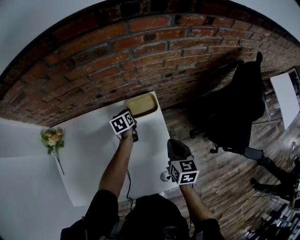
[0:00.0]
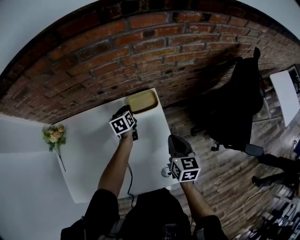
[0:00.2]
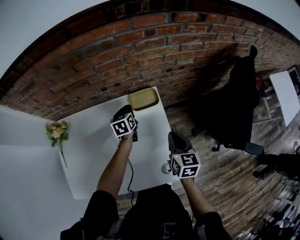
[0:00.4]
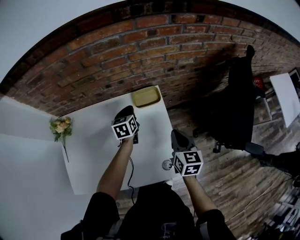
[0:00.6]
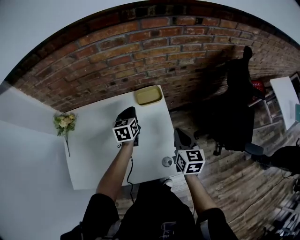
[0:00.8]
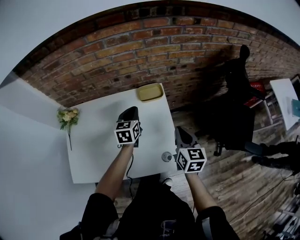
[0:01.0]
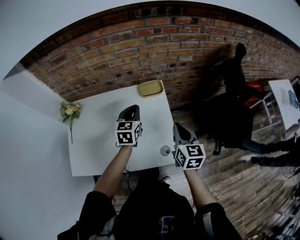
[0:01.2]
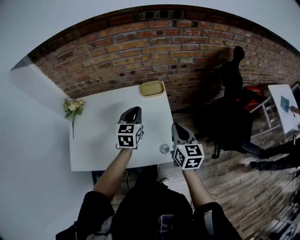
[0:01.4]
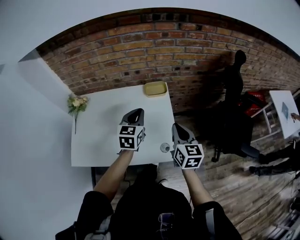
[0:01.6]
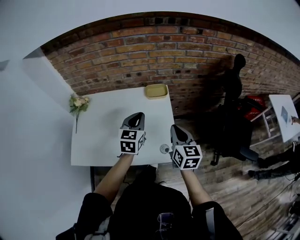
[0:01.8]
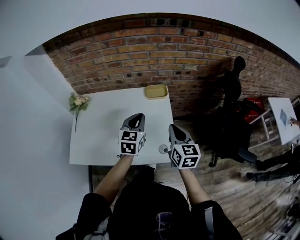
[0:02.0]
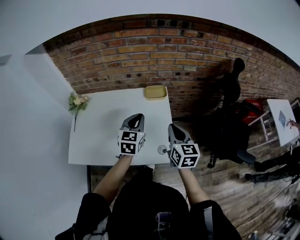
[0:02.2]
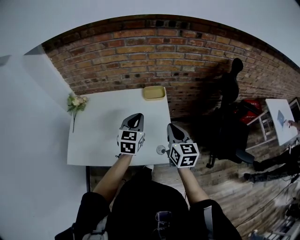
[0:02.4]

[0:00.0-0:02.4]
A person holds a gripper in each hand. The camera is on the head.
0:00.0 to 0:01.2: The left gripper moves upward and backward, some 30 cm, and swivels approximately 40 degrees; the right gripper travels backward and upward by roughly 15 cm.
0:01.2 to 0:02.4: The left gripper heads backward, covering approximately 10 cm. Meanwhile the right gripper ends up about 5 cm from where it was.

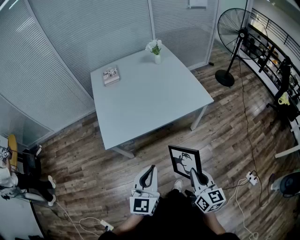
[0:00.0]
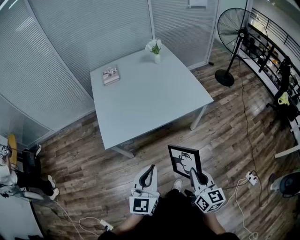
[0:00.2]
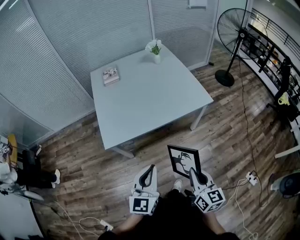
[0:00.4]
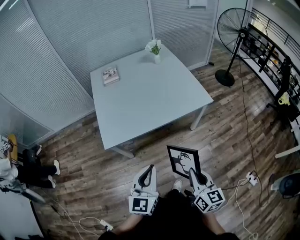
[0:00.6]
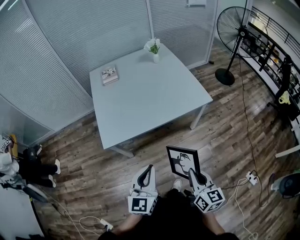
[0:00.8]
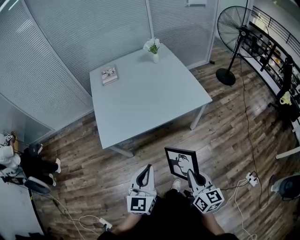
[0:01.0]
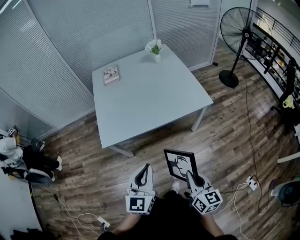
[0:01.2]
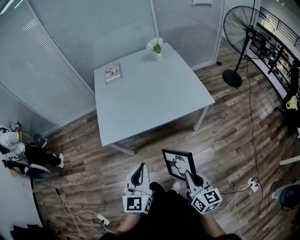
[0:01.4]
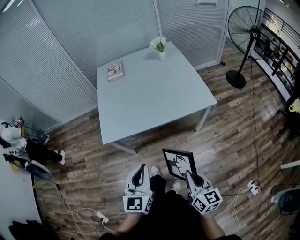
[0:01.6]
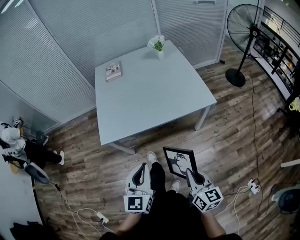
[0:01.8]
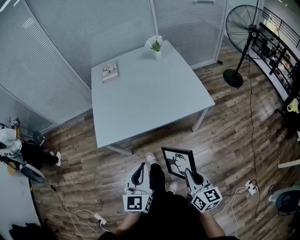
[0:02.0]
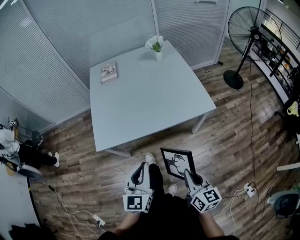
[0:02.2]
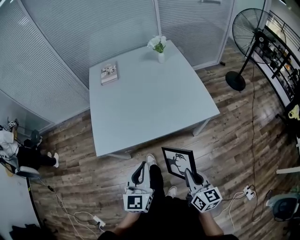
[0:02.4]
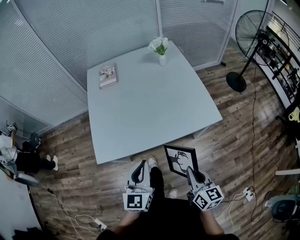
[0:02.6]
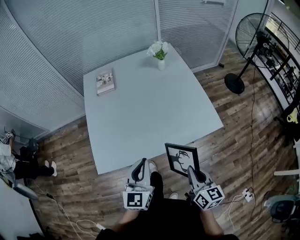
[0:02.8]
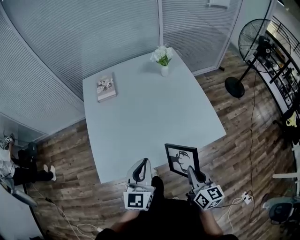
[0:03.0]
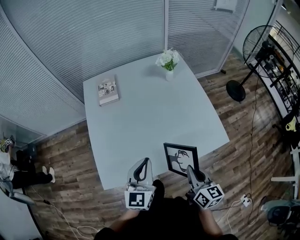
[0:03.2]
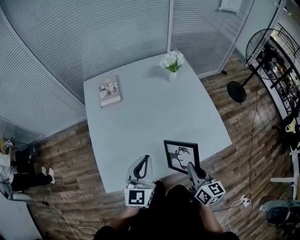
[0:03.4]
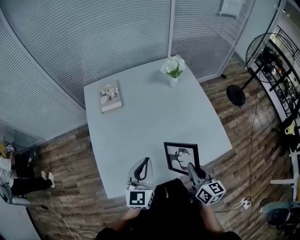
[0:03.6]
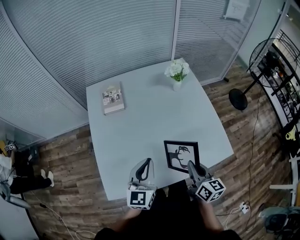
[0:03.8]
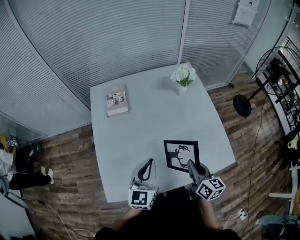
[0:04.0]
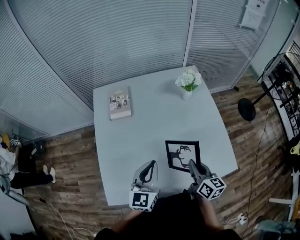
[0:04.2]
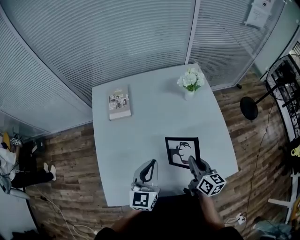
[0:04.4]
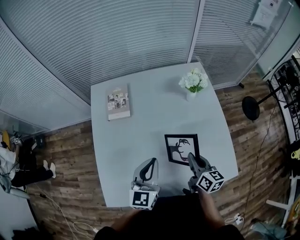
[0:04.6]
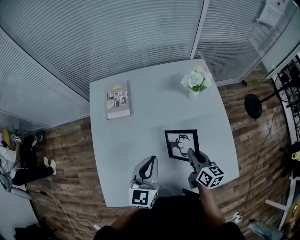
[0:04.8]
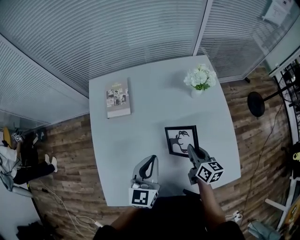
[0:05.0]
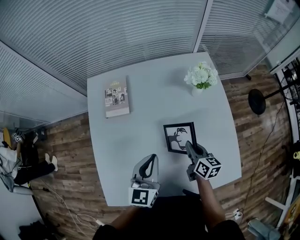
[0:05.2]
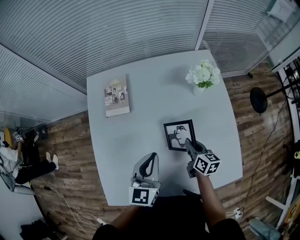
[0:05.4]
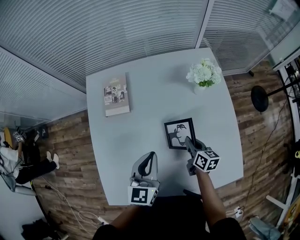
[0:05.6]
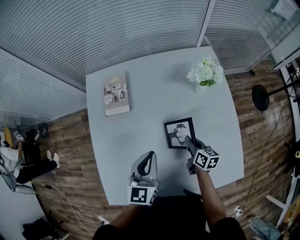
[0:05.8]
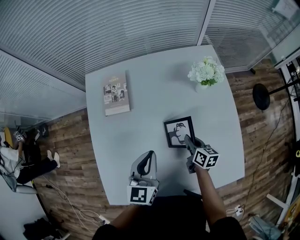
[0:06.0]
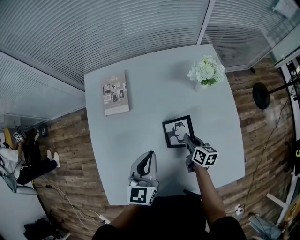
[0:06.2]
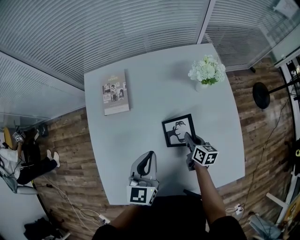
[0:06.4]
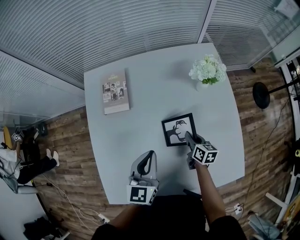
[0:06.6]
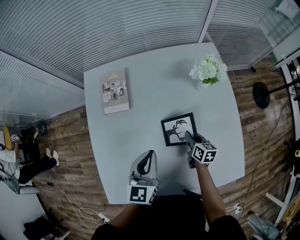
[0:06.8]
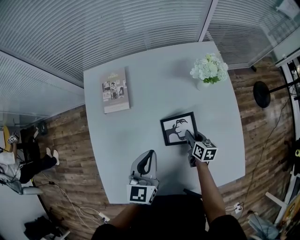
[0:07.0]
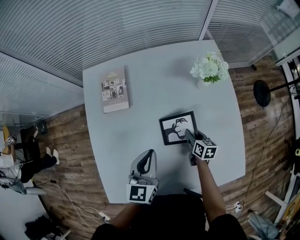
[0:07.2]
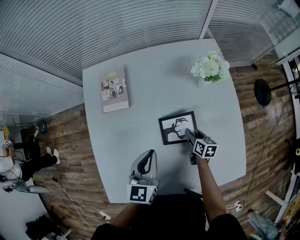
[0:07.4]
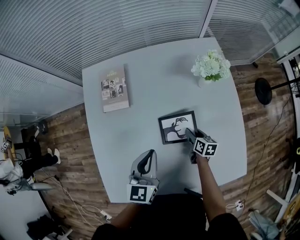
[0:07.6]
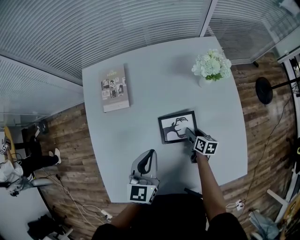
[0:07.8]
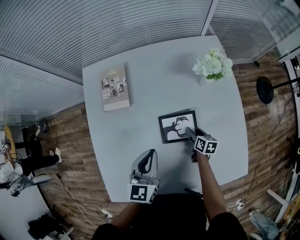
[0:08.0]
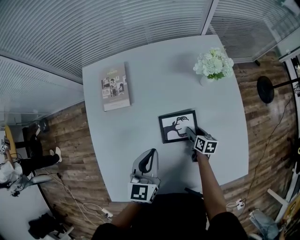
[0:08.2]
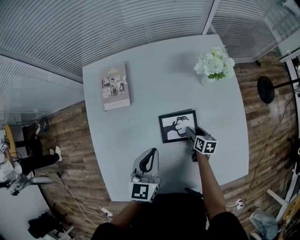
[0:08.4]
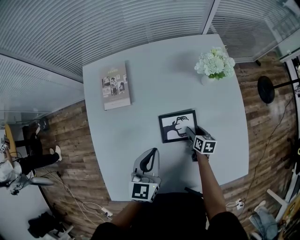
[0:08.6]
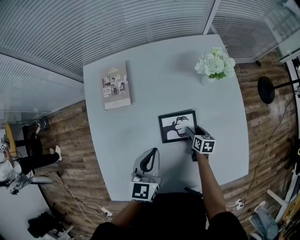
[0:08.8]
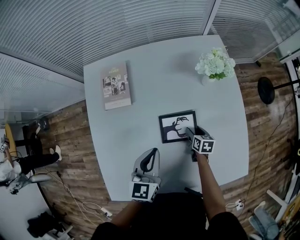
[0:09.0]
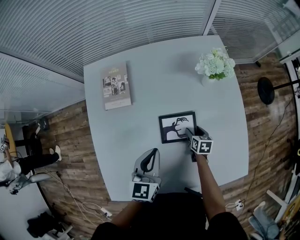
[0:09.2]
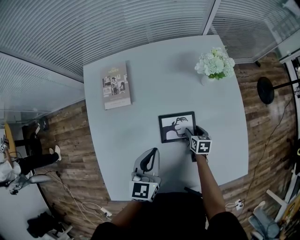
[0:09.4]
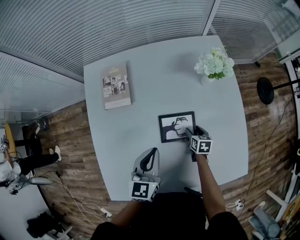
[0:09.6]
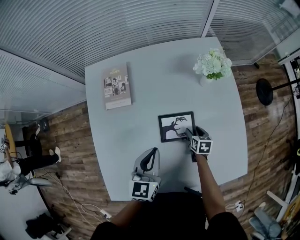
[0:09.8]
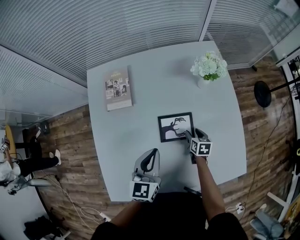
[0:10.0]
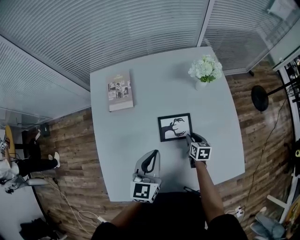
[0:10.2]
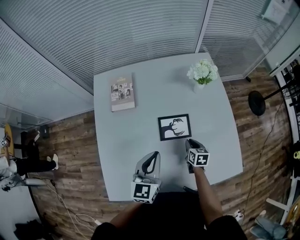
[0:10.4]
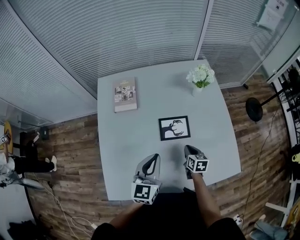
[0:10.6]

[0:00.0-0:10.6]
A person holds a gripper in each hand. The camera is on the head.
0:00.0 to 0:01.6: The right gripper heads to the right, covering some 5 cm.
0:01.6 to 0:03.0: The two grippers go about 35 cm forward.
0:03.0 to 0:04.6: Both grippers travel together forward, approximately 30 cm.
0:04.6 to 0:06.0: The left gripper moves forward, roughly 10 cm. The right gripper goes roughly 20 cm downward and forward.
0:06.0 to 0:07.6: The right gripper travels downward by approximately 10 cm, and opens.
0:07.6 to 0:09.0: The grippers move only a little.
0:09.0 to 0:10.6: The two grippers go some 15 cm backward and upward. The right gripper closes its fingers.

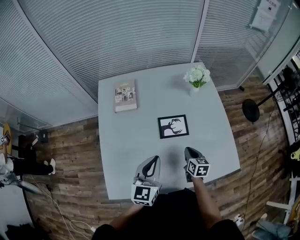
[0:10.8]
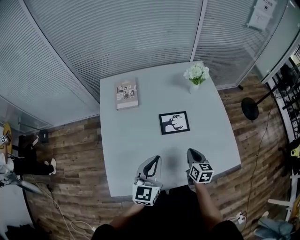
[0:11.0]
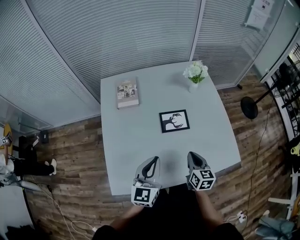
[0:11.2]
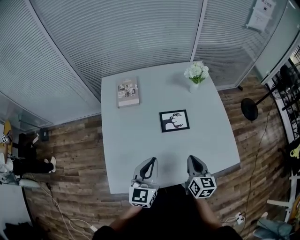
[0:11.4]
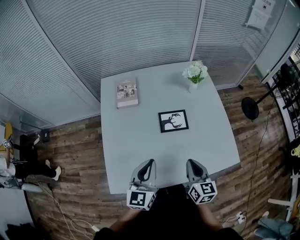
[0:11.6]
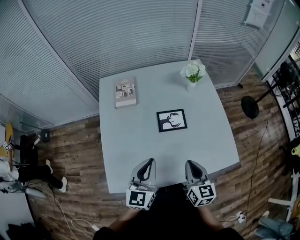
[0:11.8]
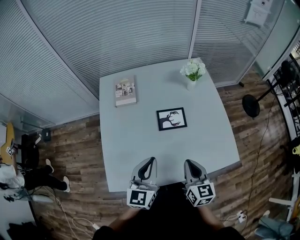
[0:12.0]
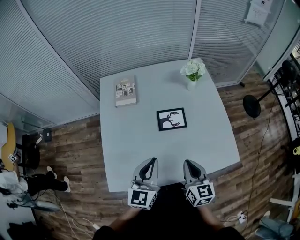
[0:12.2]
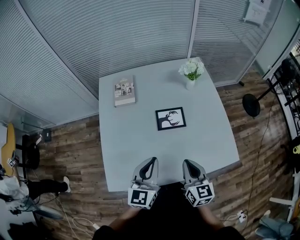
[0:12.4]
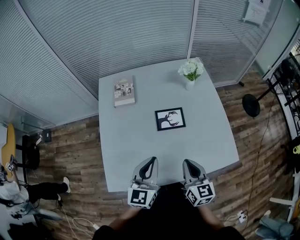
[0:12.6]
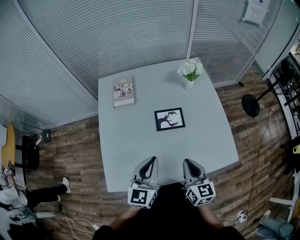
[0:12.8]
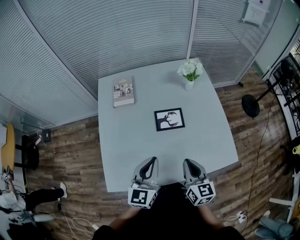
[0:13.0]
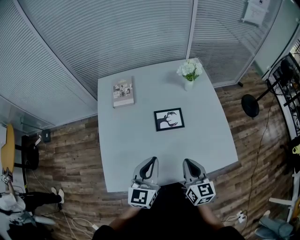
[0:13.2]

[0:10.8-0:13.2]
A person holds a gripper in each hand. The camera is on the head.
0:10.8 to 0:12.0: The left gripper is displaced backward by about 5 cm; the right gripper travels upward and backward by approximately 20 cm.
0:12.0 to 0:13.2: There are only small adjustments of the grippers.

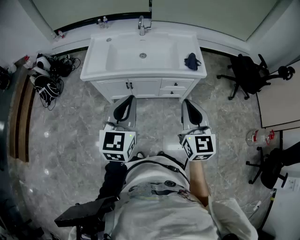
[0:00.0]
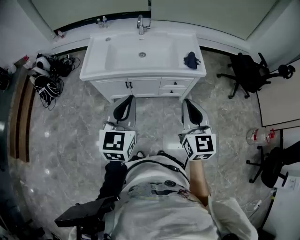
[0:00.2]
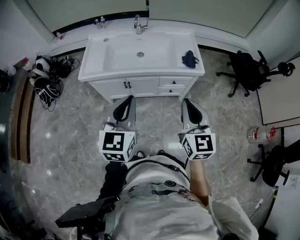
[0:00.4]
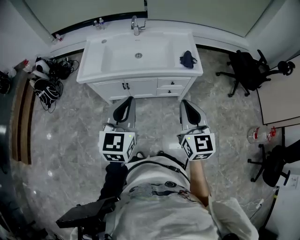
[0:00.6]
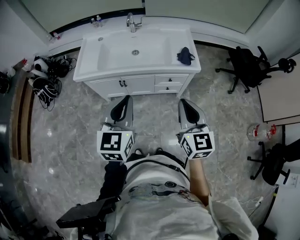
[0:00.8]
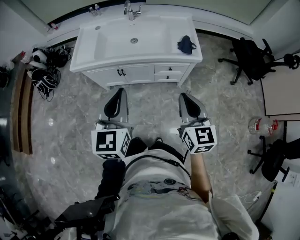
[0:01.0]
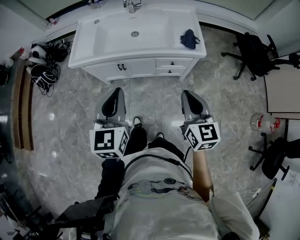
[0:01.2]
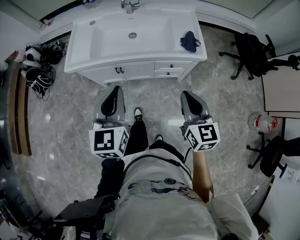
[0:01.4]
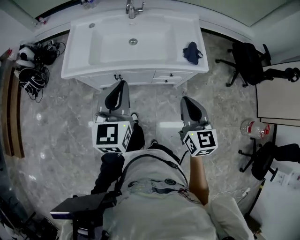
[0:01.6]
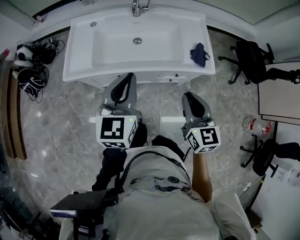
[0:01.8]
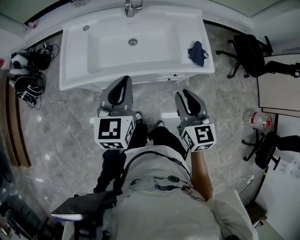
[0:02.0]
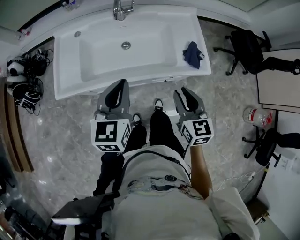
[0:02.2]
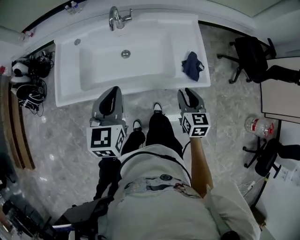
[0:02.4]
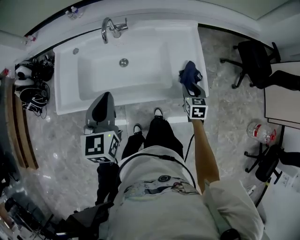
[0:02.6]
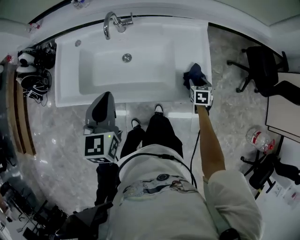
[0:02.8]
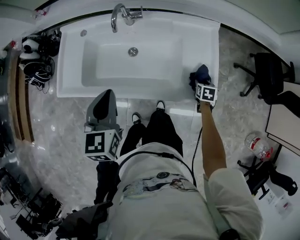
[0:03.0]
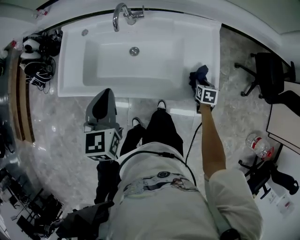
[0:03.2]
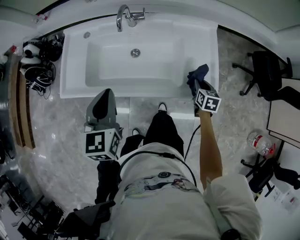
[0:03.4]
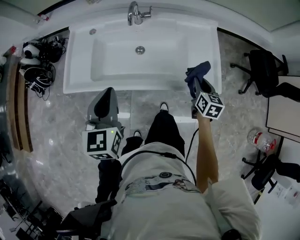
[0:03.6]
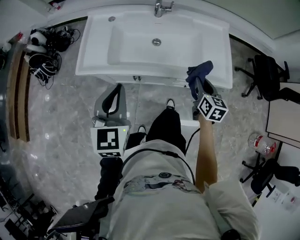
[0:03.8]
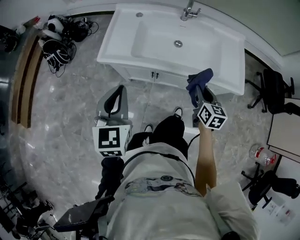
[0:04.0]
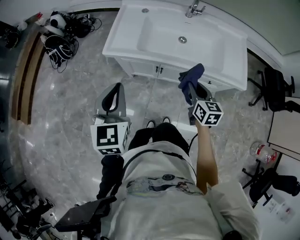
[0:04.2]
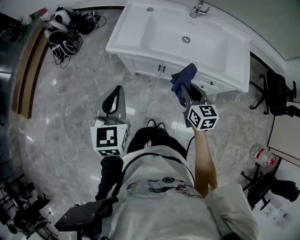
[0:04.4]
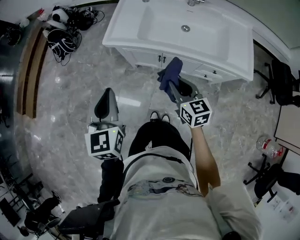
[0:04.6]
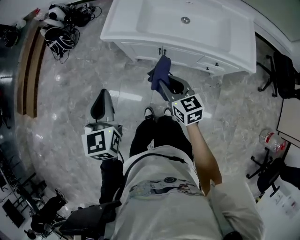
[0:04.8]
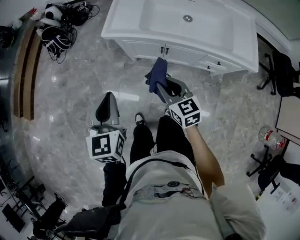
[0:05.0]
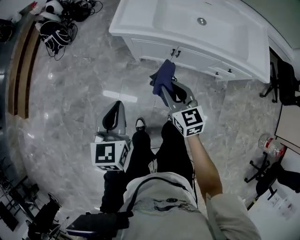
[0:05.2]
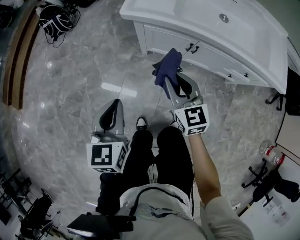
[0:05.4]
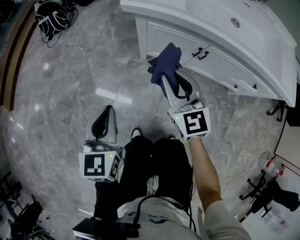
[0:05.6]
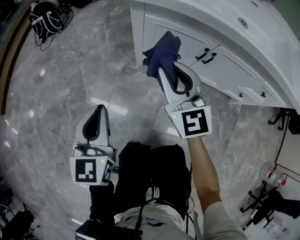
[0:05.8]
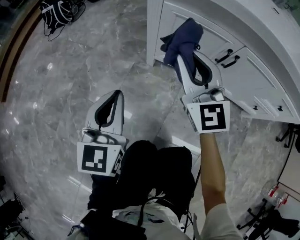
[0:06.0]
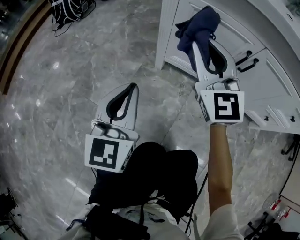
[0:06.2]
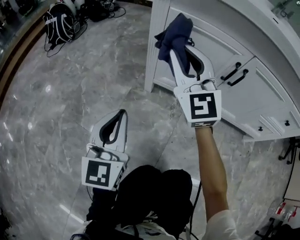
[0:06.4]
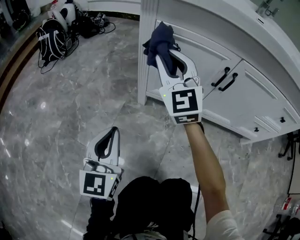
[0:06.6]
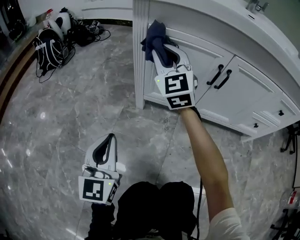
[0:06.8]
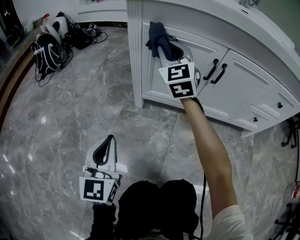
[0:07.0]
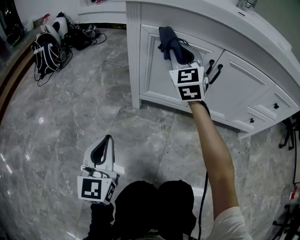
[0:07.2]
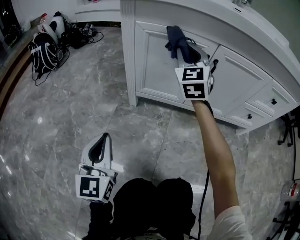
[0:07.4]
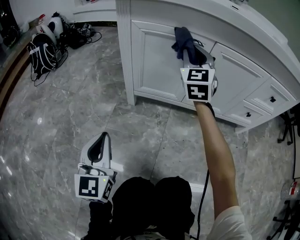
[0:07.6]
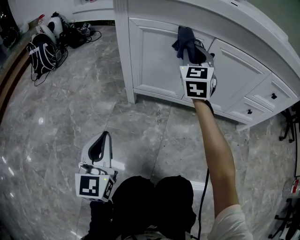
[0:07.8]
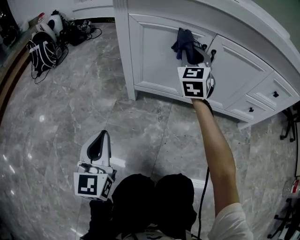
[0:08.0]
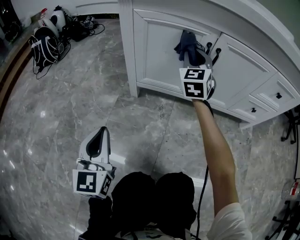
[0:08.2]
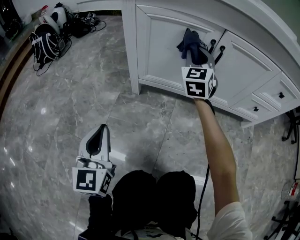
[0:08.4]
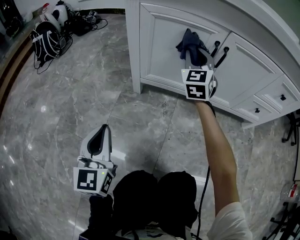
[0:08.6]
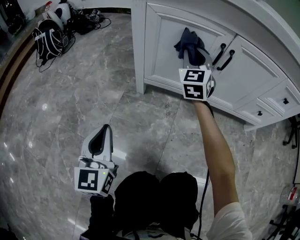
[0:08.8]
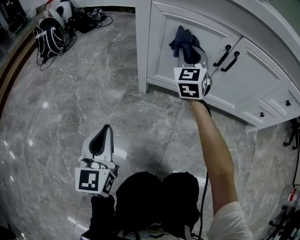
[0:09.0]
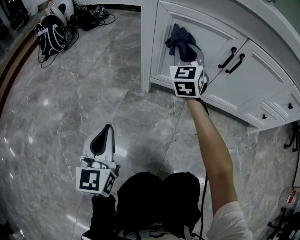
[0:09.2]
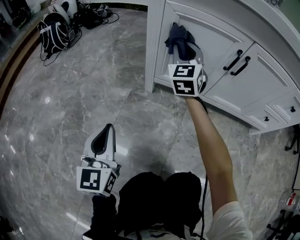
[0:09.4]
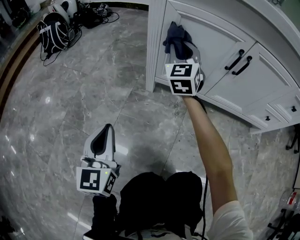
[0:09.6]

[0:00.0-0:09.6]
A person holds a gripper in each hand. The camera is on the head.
0:00.0 to 0:01.6: The right gripper heads forward and downward, covering about 15 cm, while the left gripper travels forward by roughly 15 cm.
0:01.6 to 0:03.2: The left gripper shifts about 20 cm forward; the right gripper goes some 50 cm forward, downward and to the right, tilts its fingers roughly 40 degrees downward, and opens, then closes again.
0:03.2 to 0:04.8: The pair of grippers is taken some 50 cm. The right gripper points its fingers approximately 30 degrees further upward.
0:04.8 to 0:06.4: The right gripper shifts approximately 50 cm downward, forward and to the left, and rolls counterclockwise, seen from behind, by approximately 40 degrees, while the left gripper moves downward, approximately 60 cm.
0:06.4 to 0:08.0: The left gripper ends up about 5 cm from where it was, while the right gripper is displaced to the right by about 15 cm, and rotates approximately 30 degrees.
0:08.0 to 0:09.6: The right gripper shifts roughly 15 cm to the left. The left gripper goes approximately 5 cm to the left.
